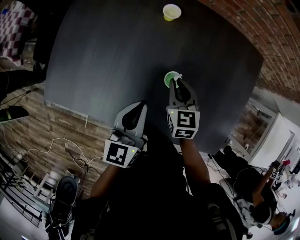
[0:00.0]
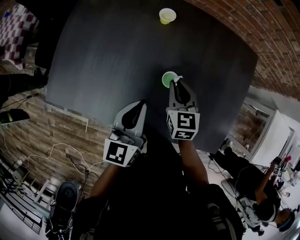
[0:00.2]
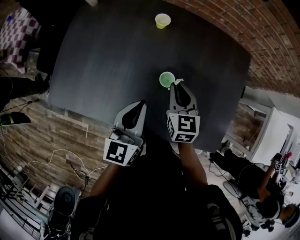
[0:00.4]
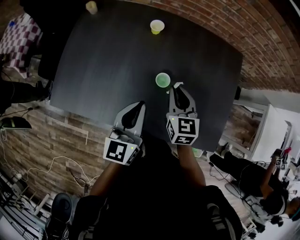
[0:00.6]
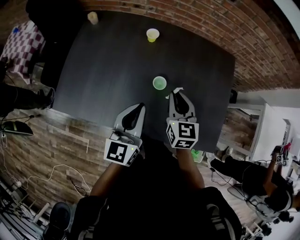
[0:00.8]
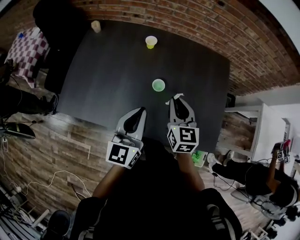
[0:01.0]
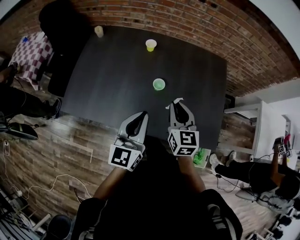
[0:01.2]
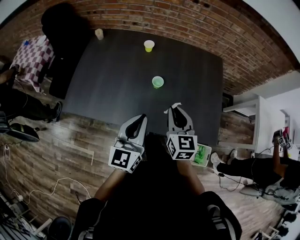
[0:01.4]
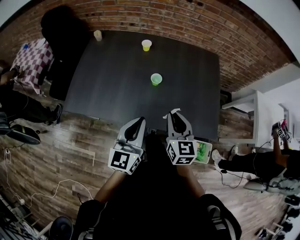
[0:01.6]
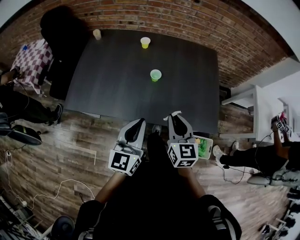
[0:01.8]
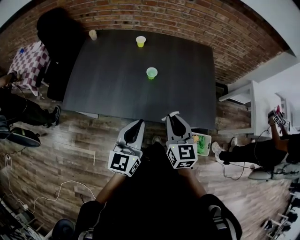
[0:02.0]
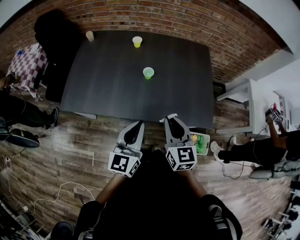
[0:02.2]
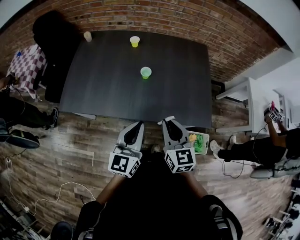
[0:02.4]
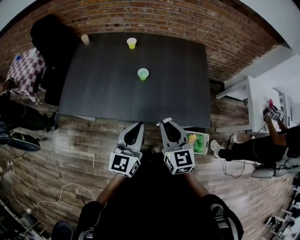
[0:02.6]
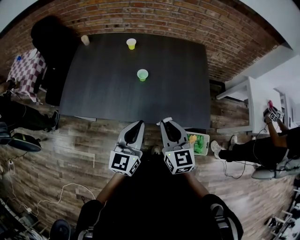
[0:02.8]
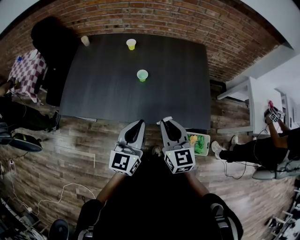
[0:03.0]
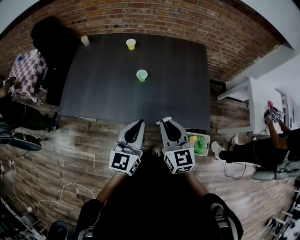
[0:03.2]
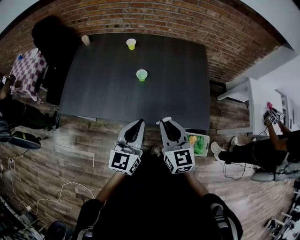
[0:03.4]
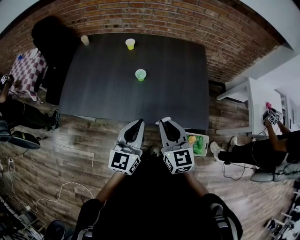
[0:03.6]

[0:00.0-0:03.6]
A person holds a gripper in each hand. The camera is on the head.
0.0 to 1.8 s: Both grippers travel together backward and upward, approximately 35 cm. The right gripper turns by roughly 20 degrees.
1.8 to 3.6 s: The right gripper changes place by approximately 5 cm. The left gripper moves to the right, some 10 cm.

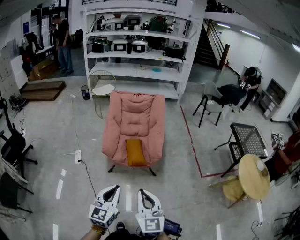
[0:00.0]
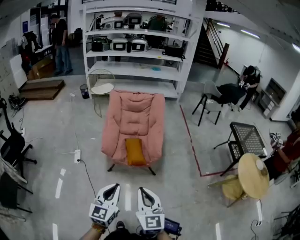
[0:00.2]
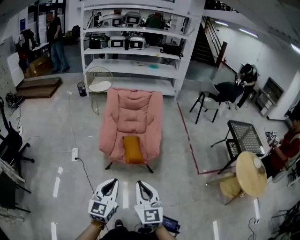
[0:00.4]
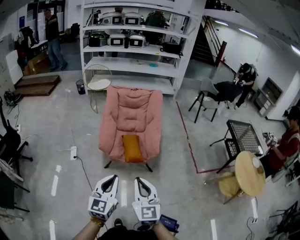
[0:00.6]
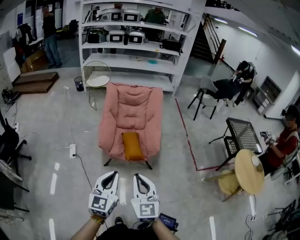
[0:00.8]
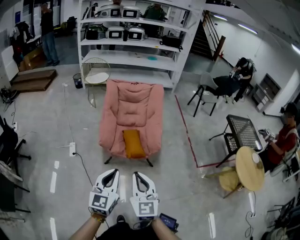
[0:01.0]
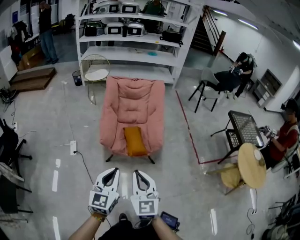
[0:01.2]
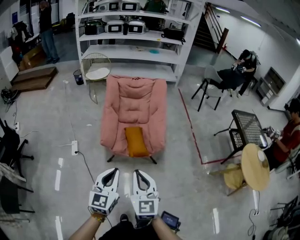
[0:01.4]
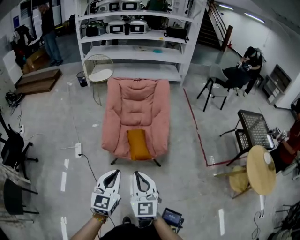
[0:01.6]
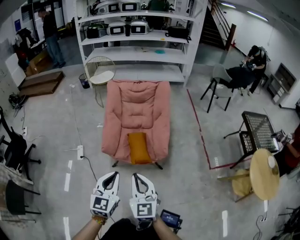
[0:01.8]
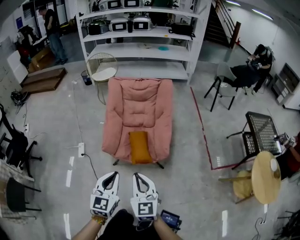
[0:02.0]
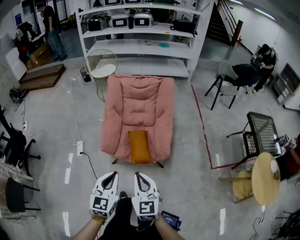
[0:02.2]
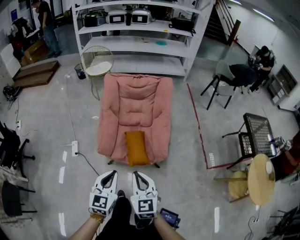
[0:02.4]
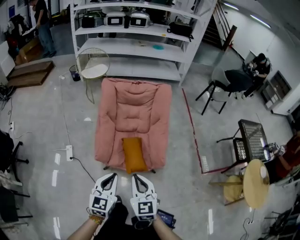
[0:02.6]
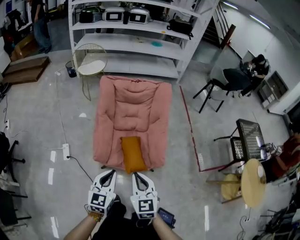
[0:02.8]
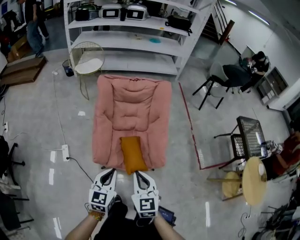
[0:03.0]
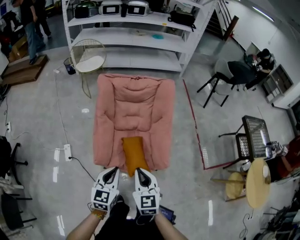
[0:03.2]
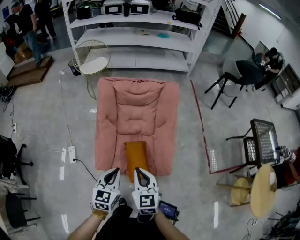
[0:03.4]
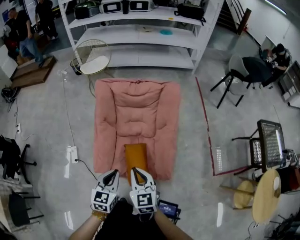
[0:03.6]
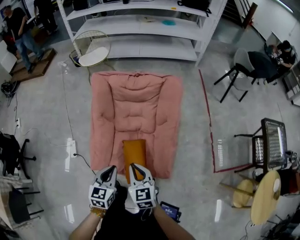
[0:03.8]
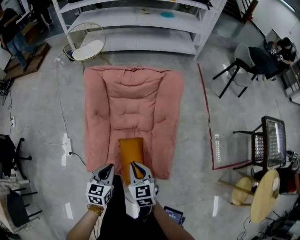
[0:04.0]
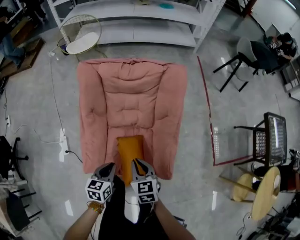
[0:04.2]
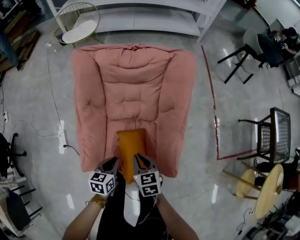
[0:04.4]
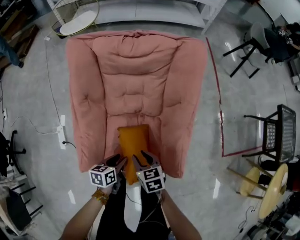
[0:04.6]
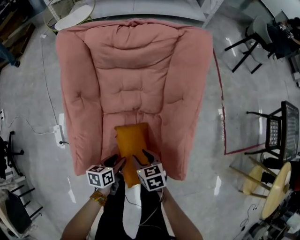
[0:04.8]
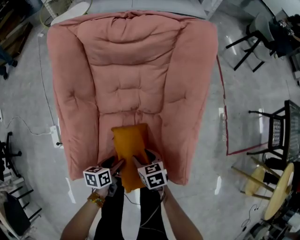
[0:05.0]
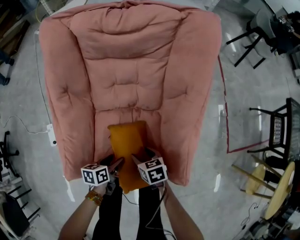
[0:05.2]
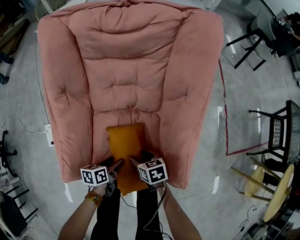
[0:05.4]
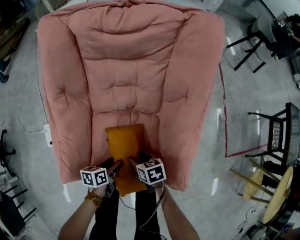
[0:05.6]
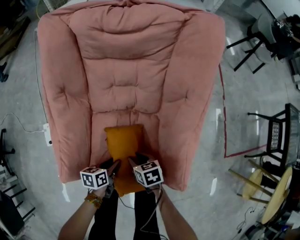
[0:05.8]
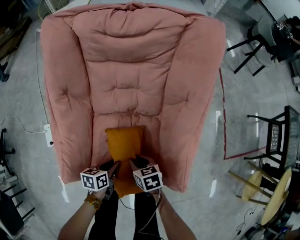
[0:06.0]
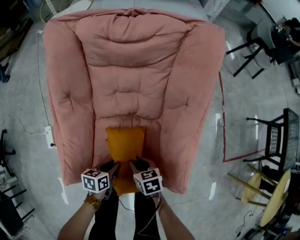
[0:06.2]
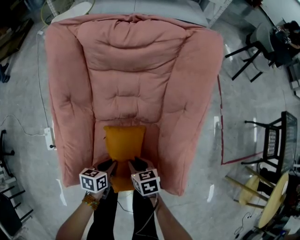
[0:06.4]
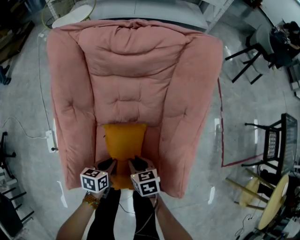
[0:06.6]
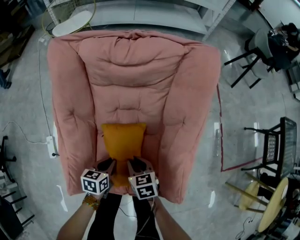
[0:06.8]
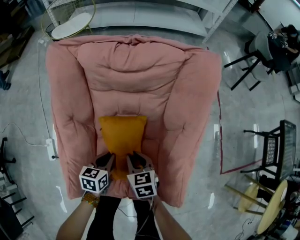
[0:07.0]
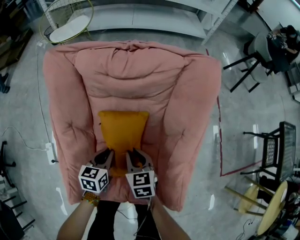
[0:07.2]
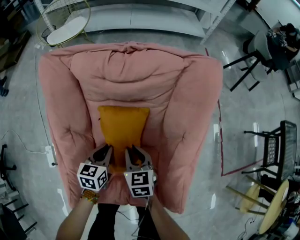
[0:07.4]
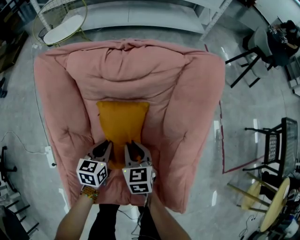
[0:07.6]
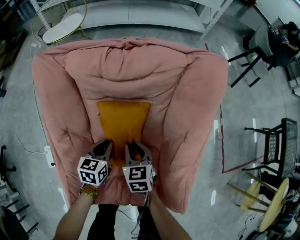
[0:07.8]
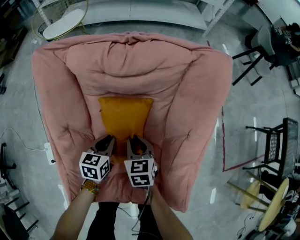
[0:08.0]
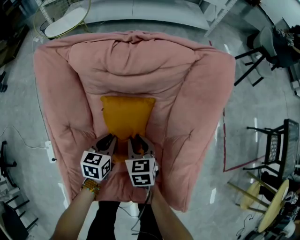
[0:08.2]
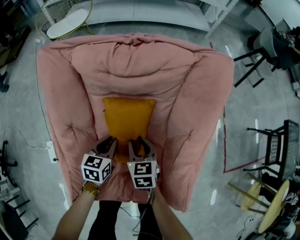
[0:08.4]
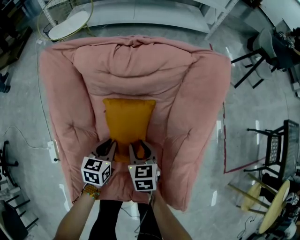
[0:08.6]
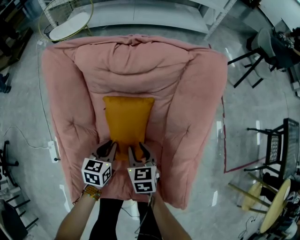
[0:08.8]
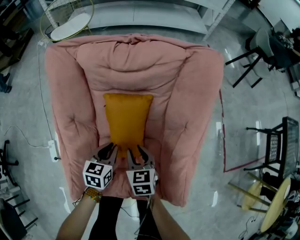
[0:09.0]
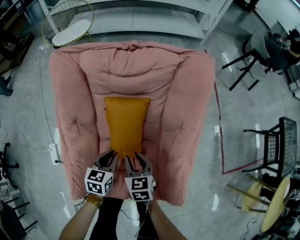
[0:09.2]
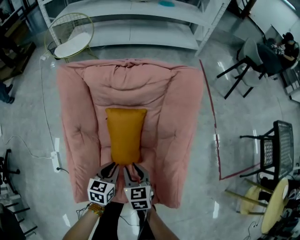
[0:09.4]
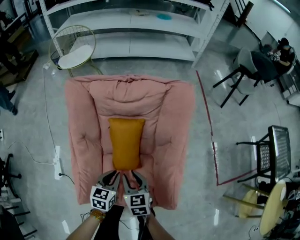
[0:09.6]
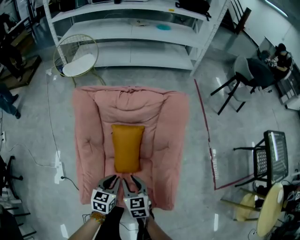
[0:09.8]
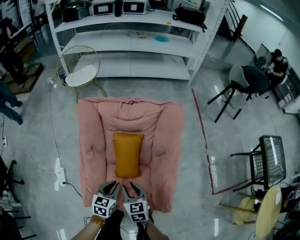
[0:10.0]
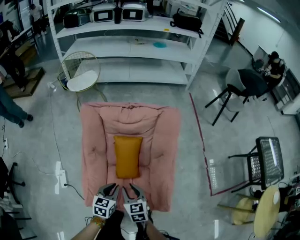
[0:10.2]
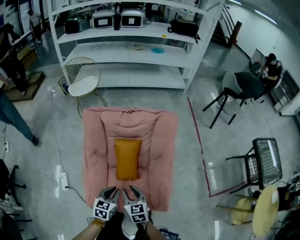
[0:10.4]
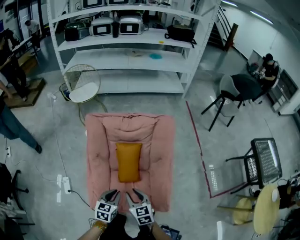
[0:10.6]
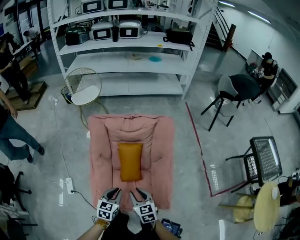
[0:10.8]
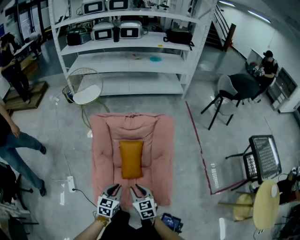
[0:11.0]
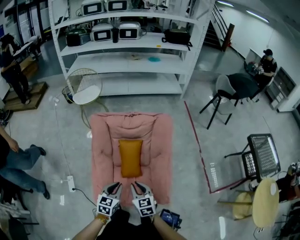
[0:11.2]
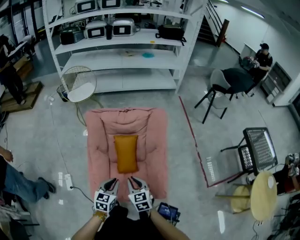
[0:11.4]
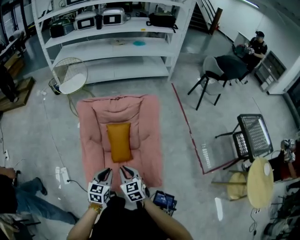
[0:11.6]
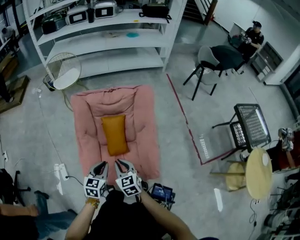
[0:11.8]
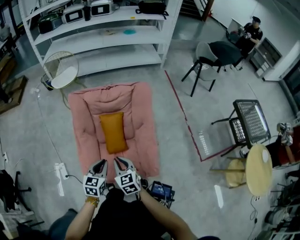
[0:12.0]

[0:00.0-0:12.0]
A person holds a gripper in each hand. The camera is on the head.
0.0 to 1.6 s: The grippers both shift forward by roughly 15 cm.
1.6 to 3.0 s: Both grippers travel together forward, about 25 cm.
3.0 to 4.4 s: The two grippers go some 40 cm downward and forward. The left gripper swivels roughly 30 degrees. The right gripper turns by some 30 degrees.
4.4 to 6.0 s: Both grippers move downward, roughly 25 cm. The right gripper changes its angle by approximately 20 degrees, and opens; the left gripper turns by roughly 20 degrees, and opens.
6.0 to 7.6 s: The left gripper shifts approximately 25 cm forward, and rotates some 30 degrees. Meanwhile the right gripper is displaced forward and upward by about 25 cm, and changes its angle by approximately 30 degrees.
7.6 to 9.0 s: Both grippers travel together backward, some 5 cm.
9.0 to 10.4 s: The grippers both shift upward and backward by approximately 30 cm.
10.4 to 12.0 s: The two grippers go some 10 cm upward and backward. The right gripper closes up.

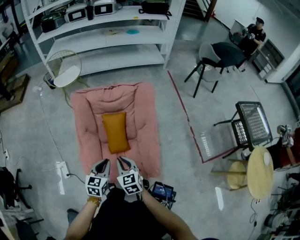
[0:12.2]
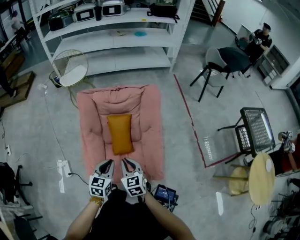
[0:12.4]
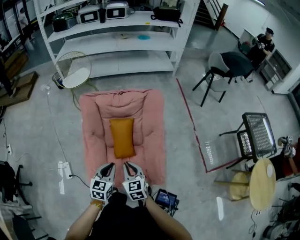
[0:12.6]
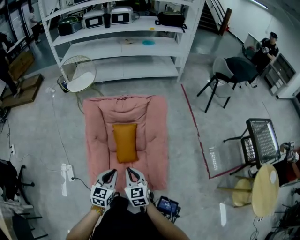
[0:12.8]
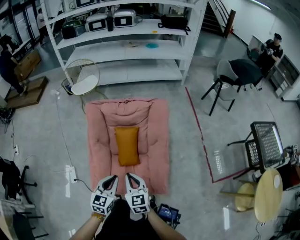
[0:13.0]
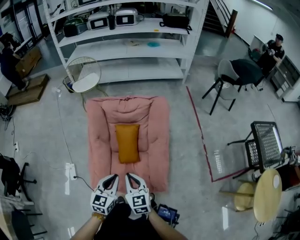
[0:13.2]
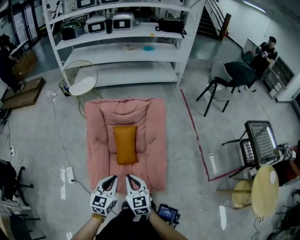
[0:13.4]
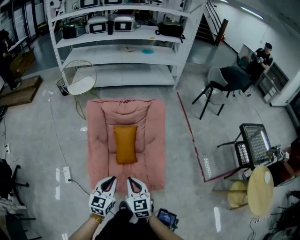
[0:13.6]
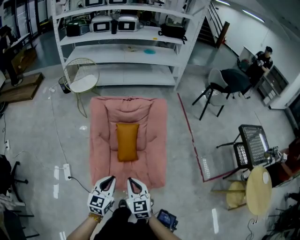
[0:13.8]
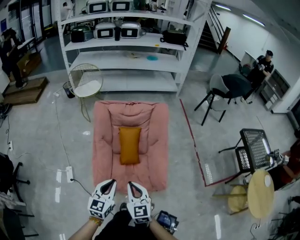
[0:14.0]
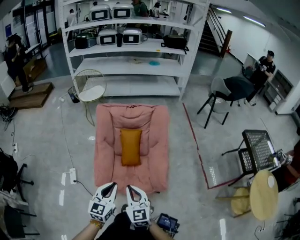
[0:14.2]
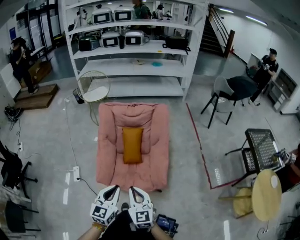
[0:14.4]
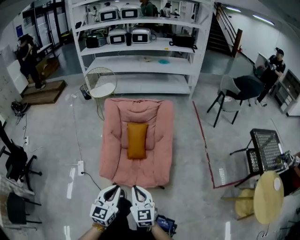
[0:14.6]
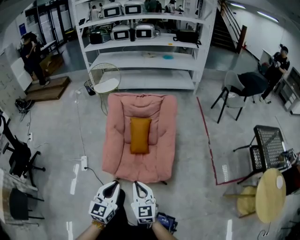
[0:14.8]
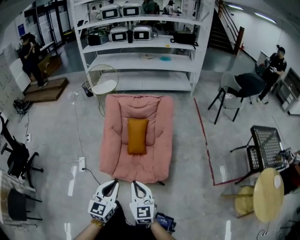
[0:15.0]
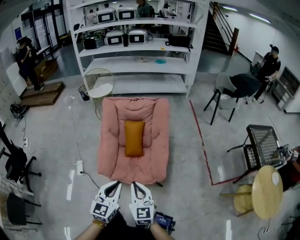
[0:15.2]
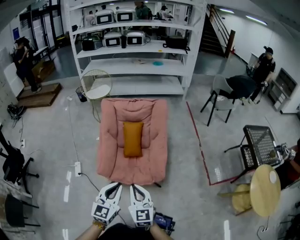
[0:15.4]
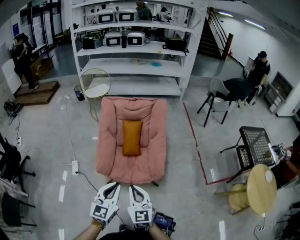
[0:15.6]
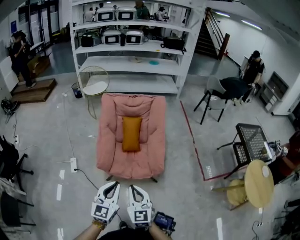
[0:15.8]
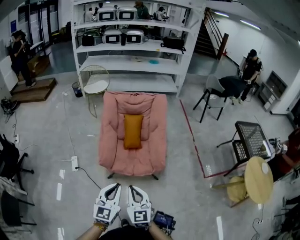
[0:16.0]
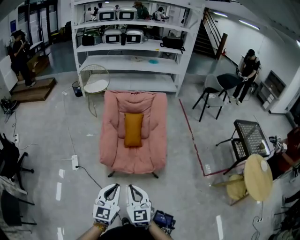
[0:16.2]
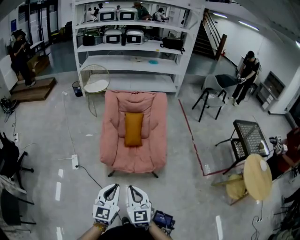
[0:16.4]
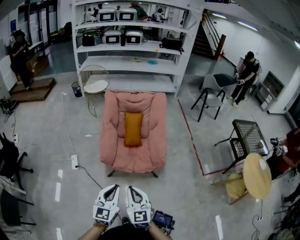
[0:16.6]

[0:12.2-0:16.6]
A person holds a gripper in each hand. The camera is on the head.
12.2 to 13.6 s: The two grippers go approximately 10 cm backward and upward.
13.6 to 15.2 s: Both grippers travel together backward, approximately 20 cm.
15.2 to 16.6 s: The grippers both shift backward and to the left by approximately 20 cm.

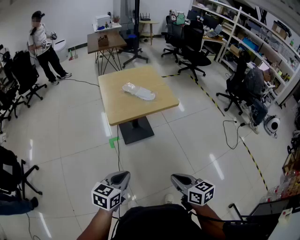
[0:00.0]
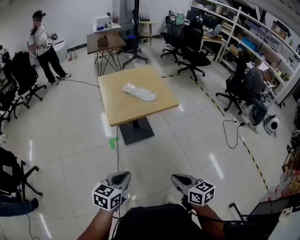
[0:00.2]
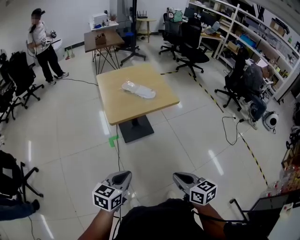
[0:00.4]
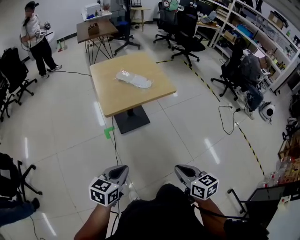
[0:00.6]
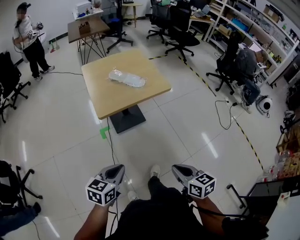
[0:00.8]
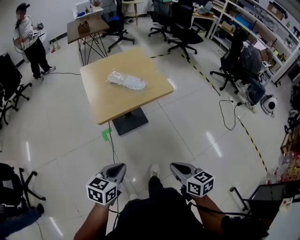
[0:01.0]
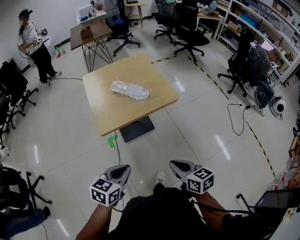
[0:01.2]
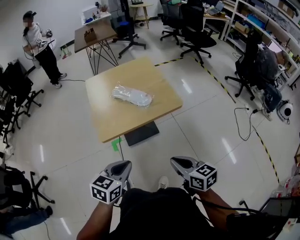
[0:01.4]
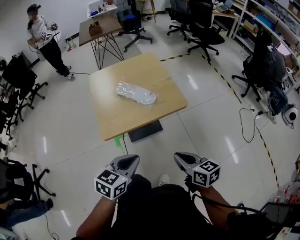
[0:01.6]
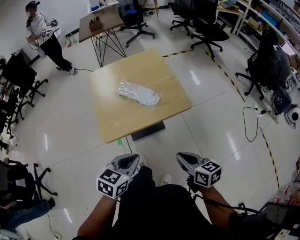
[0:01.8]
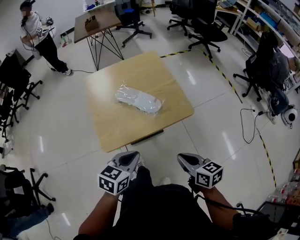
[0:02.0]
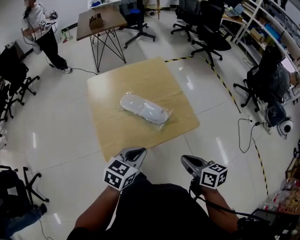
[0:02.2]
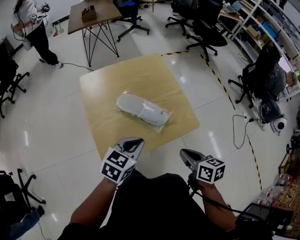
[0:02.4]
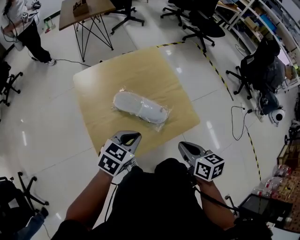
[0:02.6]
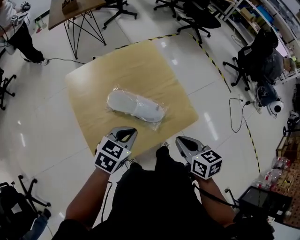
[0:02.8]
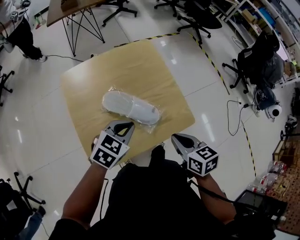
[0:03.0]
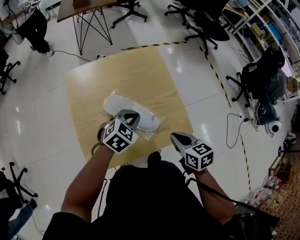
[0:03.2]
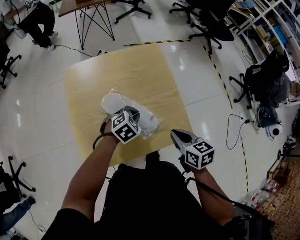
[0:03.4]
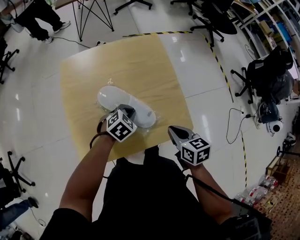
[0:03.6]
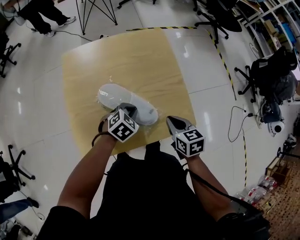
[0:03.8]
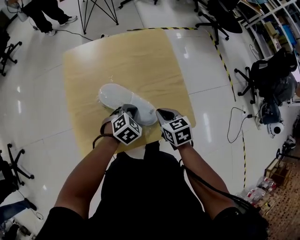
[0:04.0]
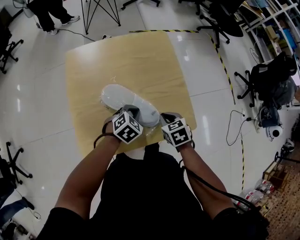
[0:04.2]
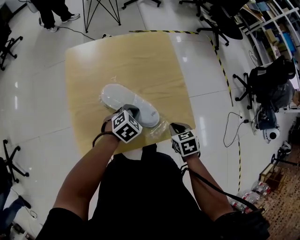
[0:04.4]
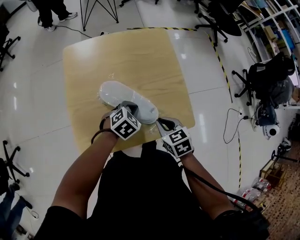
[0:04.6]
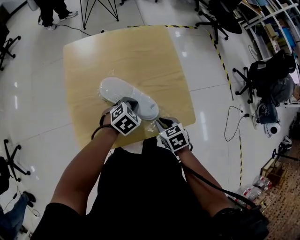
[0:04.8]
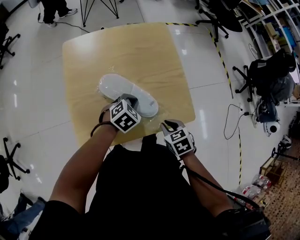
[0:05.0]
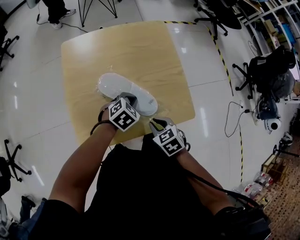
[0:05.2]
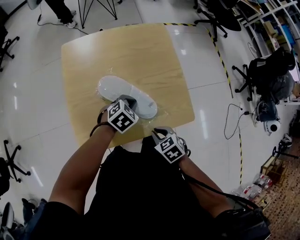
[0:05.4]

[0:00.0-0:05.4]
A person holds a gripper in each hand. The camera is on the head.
0.0 to 1.4 s: The two grippers go about 20 cm forward.
1.4 to 2.8 s: Both grippers travel together forward, about 30 cm.
2.8 to 4.0 s: The left gripper goes roughly 15 cm downward and forward, and turns by approximately 20 degrees, while the right gripper goes some 15 cm forward and downward, and swivels approximately 20 degrees.
4.0 to 5.4 s: The right gripper heads backward, covering approximately 15 cm, and turns by approximately 20 degrees.
